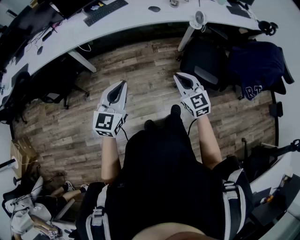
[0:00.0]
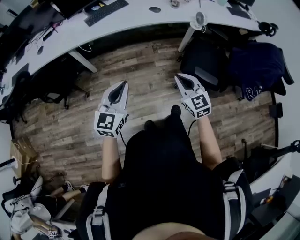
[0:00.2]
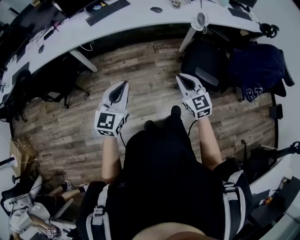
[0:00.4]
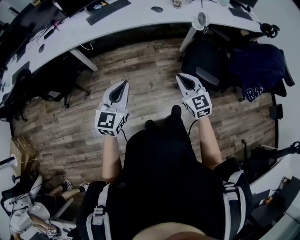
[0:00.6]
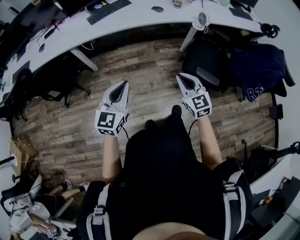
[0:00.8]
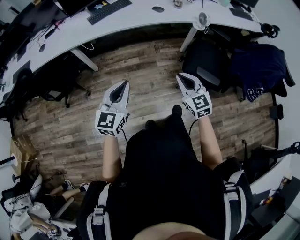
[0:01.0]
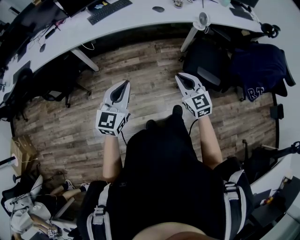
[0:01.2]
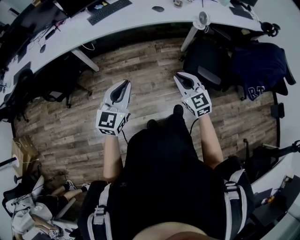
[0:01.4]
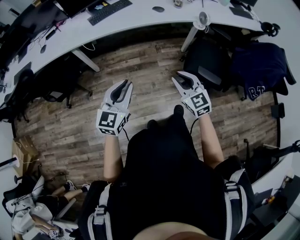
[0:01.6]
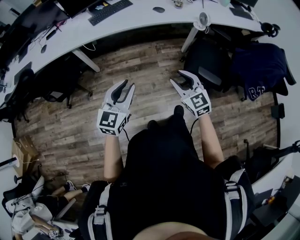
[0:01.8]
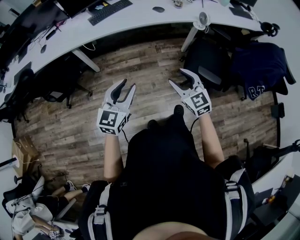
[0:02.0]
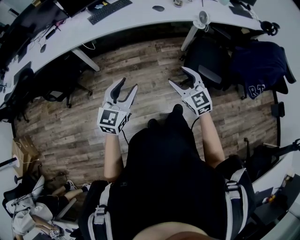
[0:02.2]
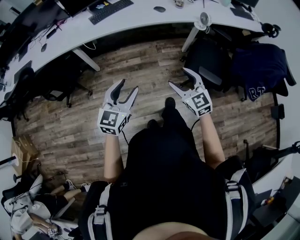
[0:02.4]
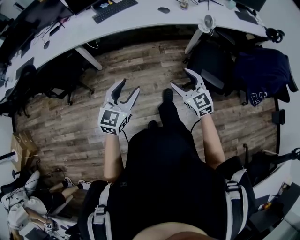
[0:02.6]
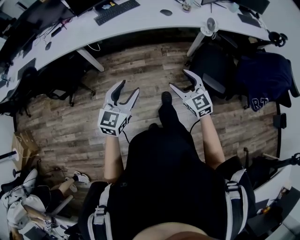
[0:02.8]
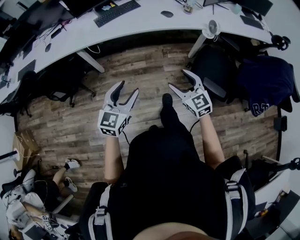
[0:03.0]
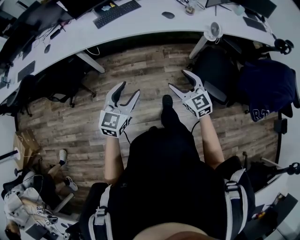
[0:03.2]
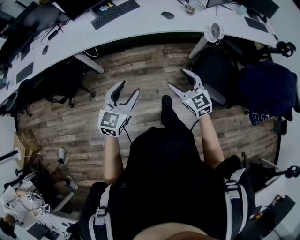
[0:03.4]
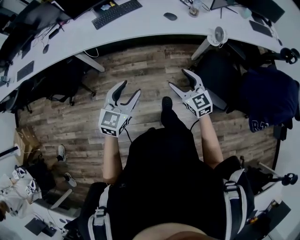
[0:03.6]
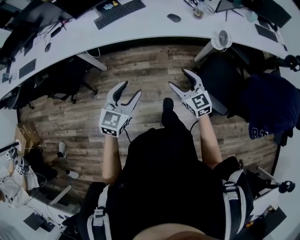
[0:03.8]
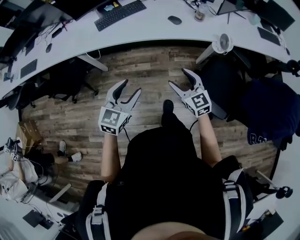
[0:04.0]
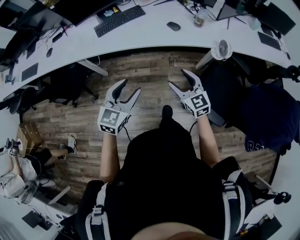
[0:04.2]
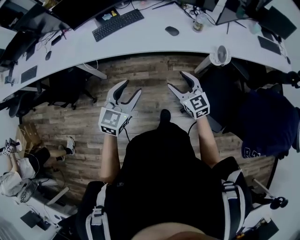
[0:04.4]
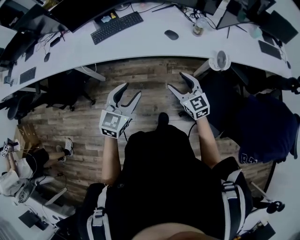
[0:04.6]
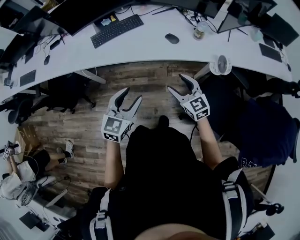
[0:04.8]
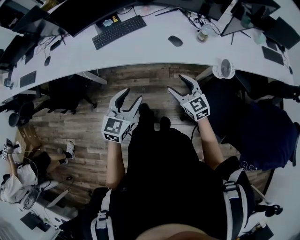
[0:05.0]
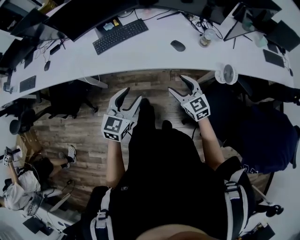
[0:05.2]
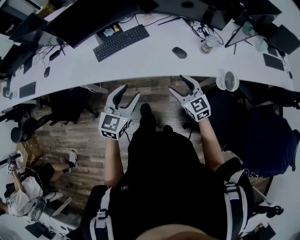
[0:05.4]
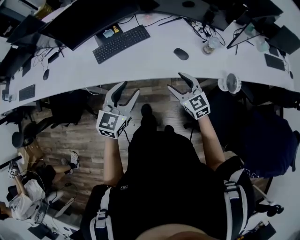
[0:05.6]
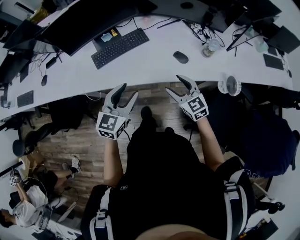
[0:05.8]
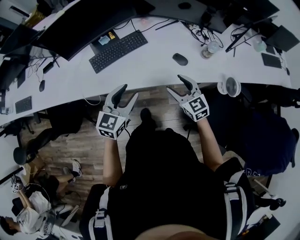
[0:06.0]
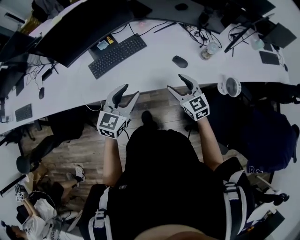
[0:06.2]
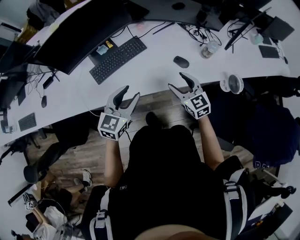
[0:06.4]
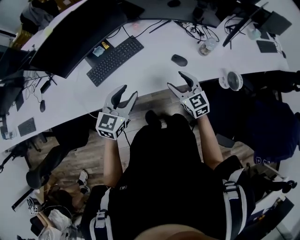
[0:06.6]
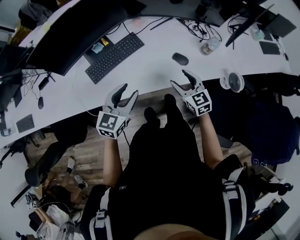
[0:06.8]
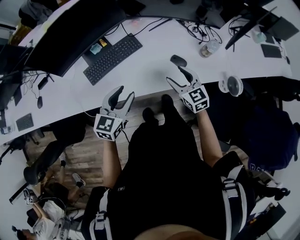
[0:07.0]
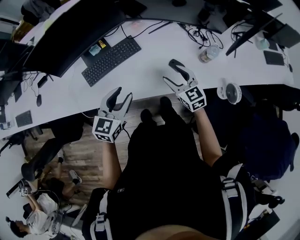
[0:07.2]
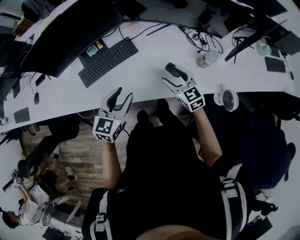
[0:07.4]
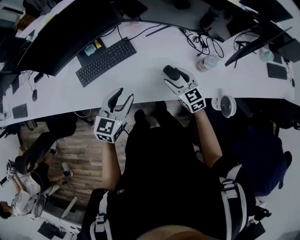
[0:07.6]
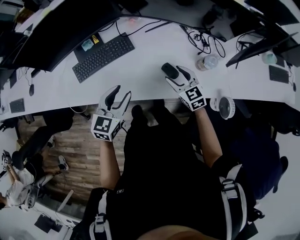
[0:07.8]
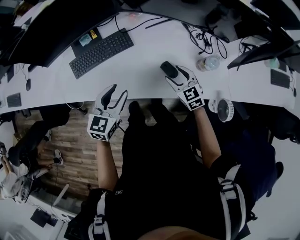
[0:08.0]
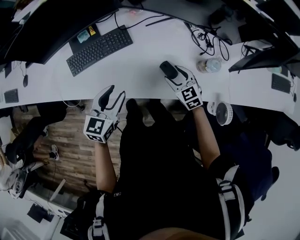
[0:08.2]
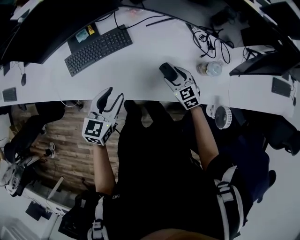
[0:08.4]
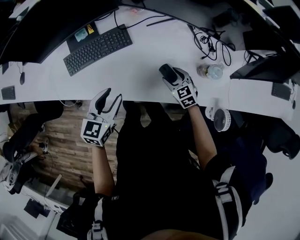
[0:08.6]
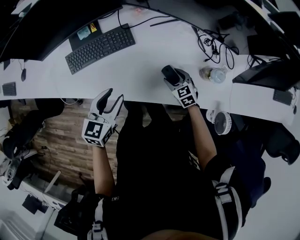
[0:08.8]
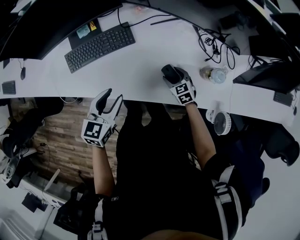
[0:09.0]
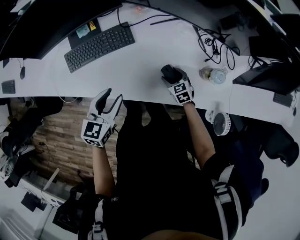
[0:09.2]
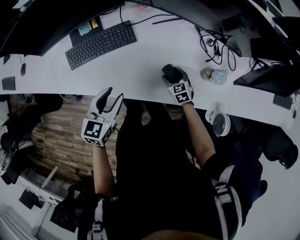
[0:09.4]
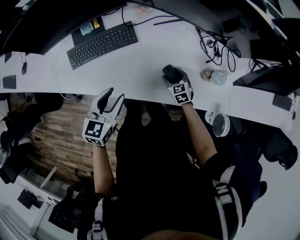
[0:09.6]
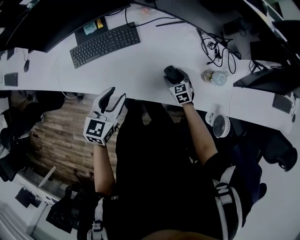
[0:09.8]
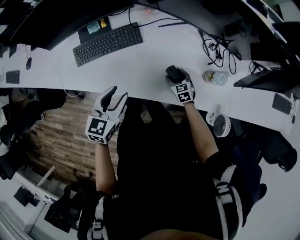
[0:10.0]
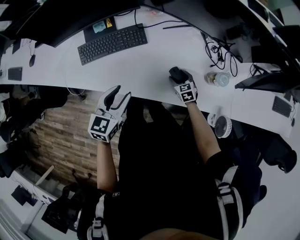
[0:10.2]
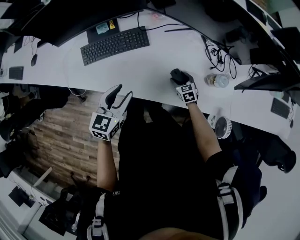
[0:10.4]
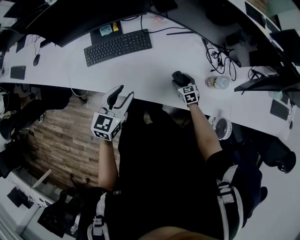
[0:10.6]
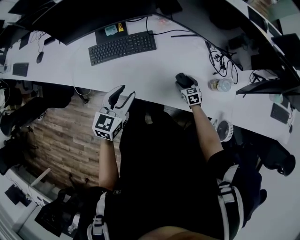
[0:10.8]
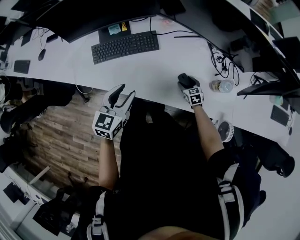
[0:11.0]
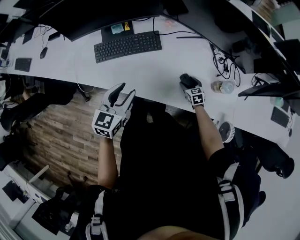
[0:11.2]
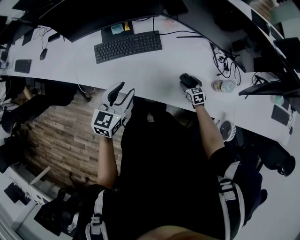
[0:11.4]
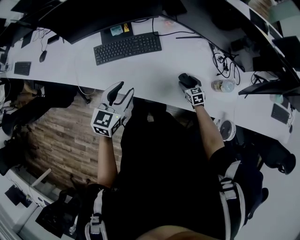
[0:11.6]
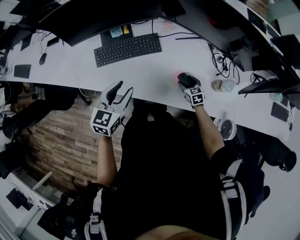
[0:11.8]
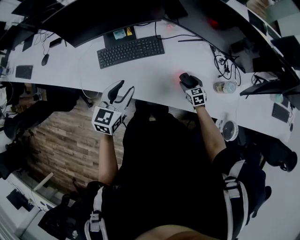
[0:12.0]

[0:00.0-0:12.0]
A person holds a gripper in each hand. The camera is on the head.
0:00.0 to 0:01.6: There are only small adjustments of the grippers.
0:01.6 to 0:03.0: The two grippers go about 5 cm forward. The right gripper opens its fingers. The left gripper opens up.
0:03.0 to 0:04.4: The left gripper shifts some 25 cm forward and to the right. Meanwhile the right gripper heads forward, covering some 25 cm.
0:04.4 to 0:06.0: Both grippers travel together forward, about 25 cm.
0:06.0 to 0:07.6: Both grippers move forward and to the right, roughly 15 cm.
0:07.6 to 0:09.0: The right gripper moves downward, about 20 cm, and rotates about 20 degrees; the left gripper is displaced downward by roughly 5 cm.
0:09.0 to 0:10.4: The grippers move only a little.
0:10.4 to 0:12.0: The left gripper moves to the left, about 10 cm. Meanwhile the right gripper ends up some 5 cm from where it was.

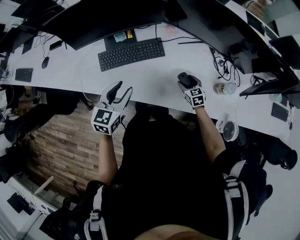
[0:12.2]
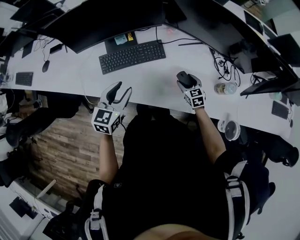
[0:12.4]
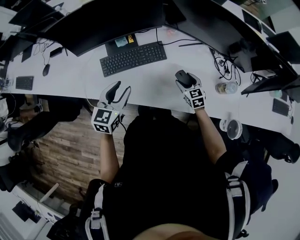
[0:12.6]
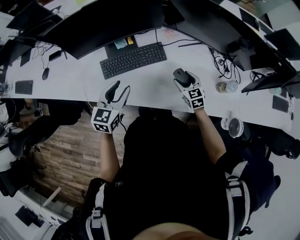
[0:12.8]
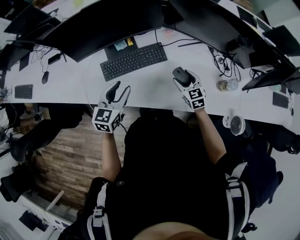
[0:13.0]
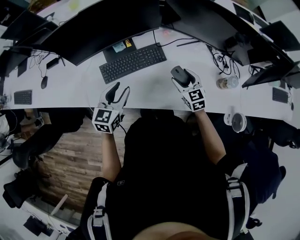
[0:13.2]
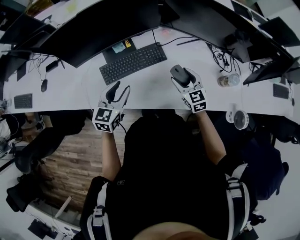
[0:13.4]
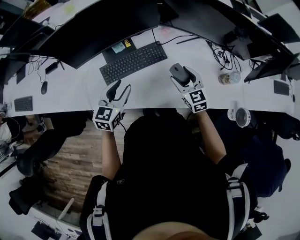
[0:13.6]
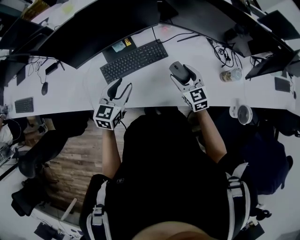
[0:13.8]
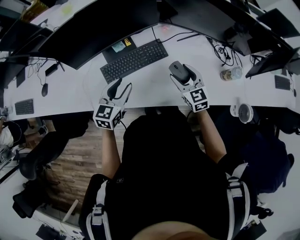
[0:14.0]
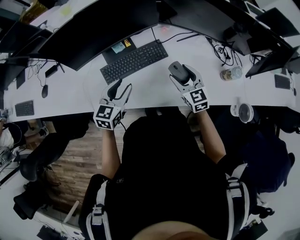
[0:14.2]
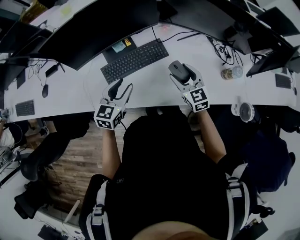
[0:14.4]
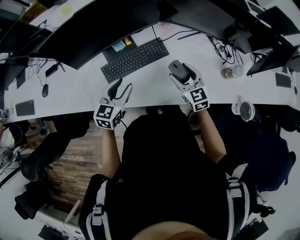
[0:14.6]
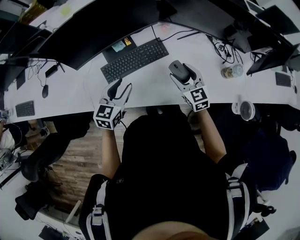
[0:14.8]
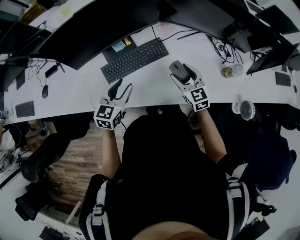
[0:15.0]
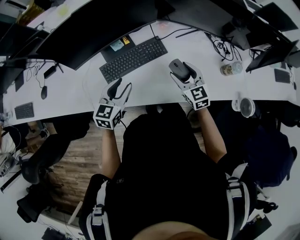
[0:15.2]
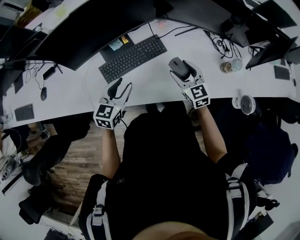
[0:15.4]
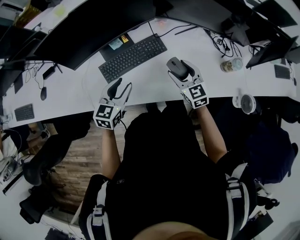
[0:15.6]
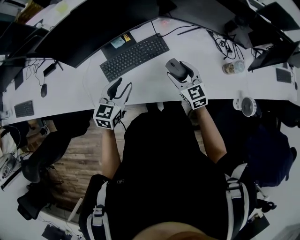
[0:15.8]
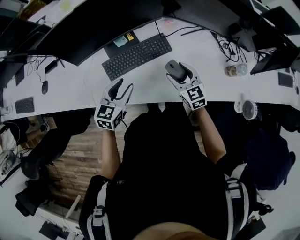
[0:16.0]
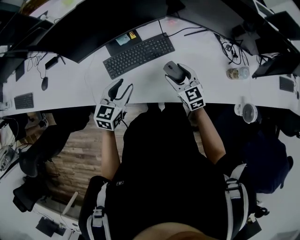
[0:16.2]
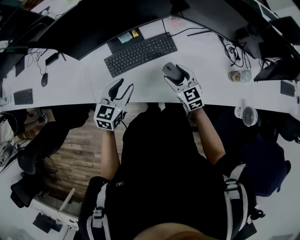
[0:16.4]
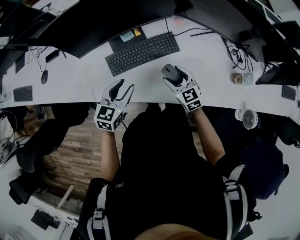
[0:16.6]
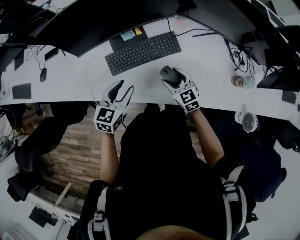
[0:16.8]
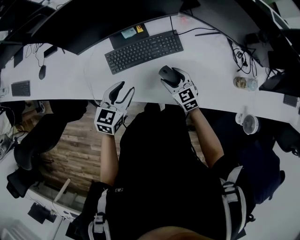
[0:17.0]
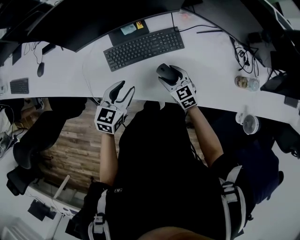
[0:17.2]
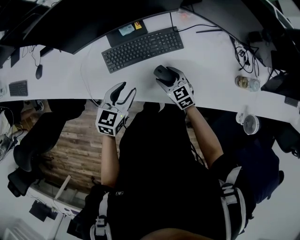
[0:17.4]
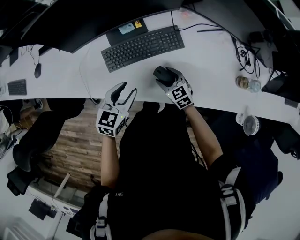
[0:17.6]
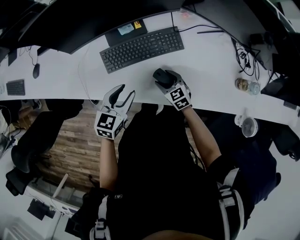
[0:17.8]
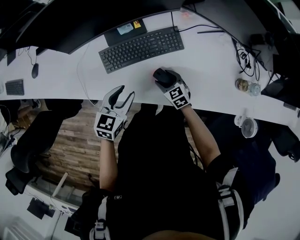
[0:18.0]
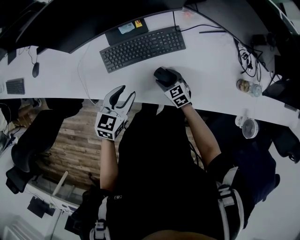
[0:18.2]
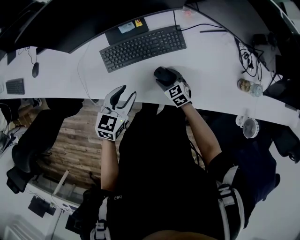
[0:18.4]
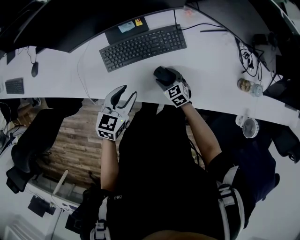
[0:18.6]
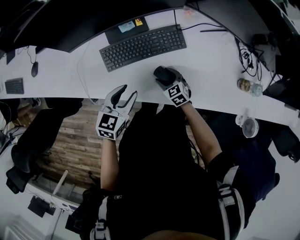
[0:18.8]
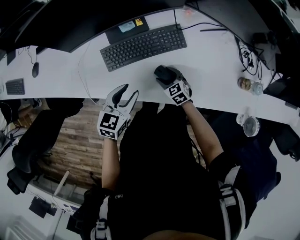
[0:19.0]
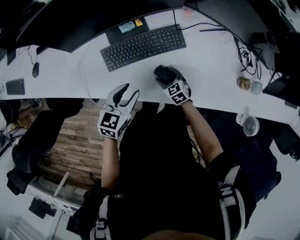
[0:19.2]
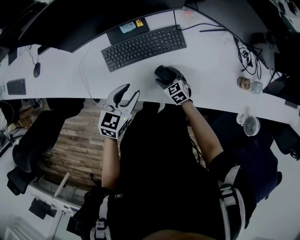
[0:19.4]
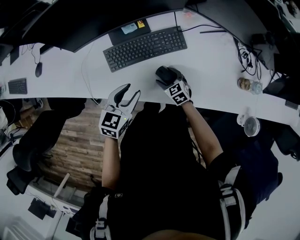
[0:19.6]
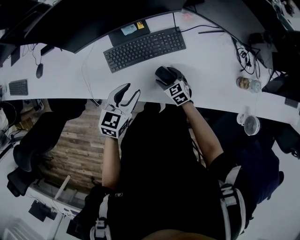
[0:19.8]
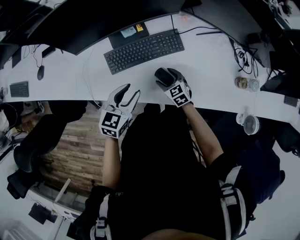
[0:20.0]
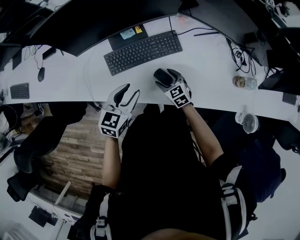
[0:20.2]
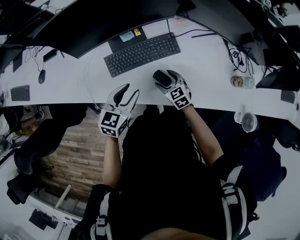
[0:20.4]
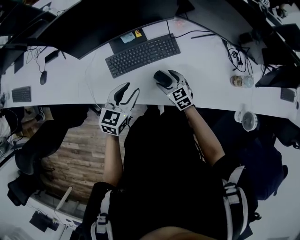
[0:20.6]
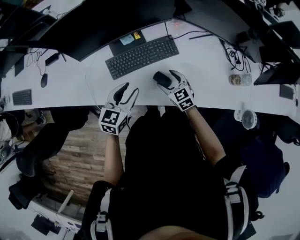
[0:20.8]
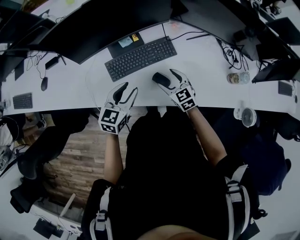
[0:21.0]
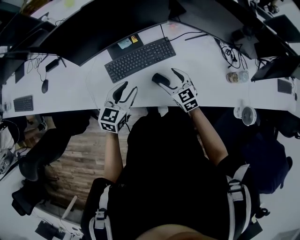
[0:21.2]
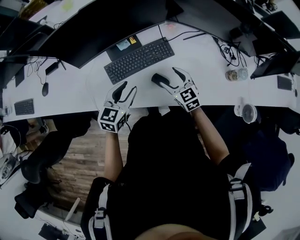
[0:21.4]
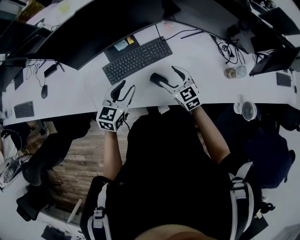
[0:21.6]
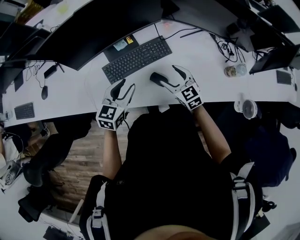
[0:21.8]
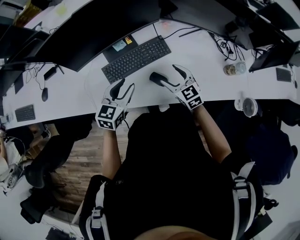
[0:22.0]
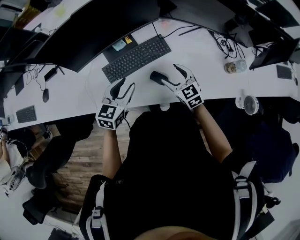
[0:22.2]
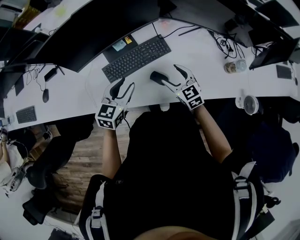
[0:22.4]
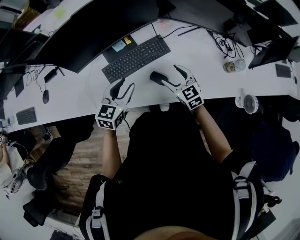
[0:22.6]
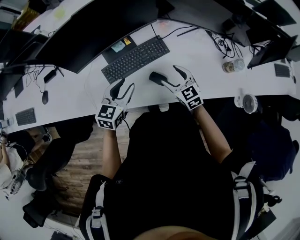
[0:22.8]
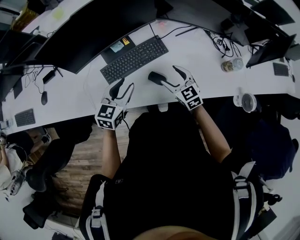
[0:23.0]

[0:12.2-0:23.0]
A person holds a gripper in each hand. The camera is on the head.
0:12.2 to 0:13.8: The left gripper heads to the left and forward, covering approximately 10 cm; the right gripper travels upward and to the left by about 20 cm.
0:13.8 to 0:15.2: The grippers make only small movements.
0:15.2 to 0:16.8: The right gripper goes about 10 cm downward and to the left.
0:16.8 to 0:18.4: The right gripper shifts approximately 15 cm downward. Meanwhile the left gripper moves some 5 cm.
0:18.4 to 0:20.0: The grippers move only a little.
0:20.0 to 0:21.4: The right gripper is displaced upward by some 15 cm.
0:21.4 to 0:23.0: The grippers stay close to where they were, moving slightly.

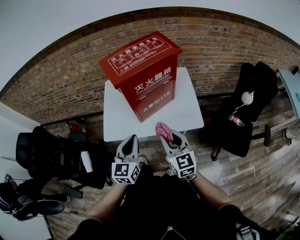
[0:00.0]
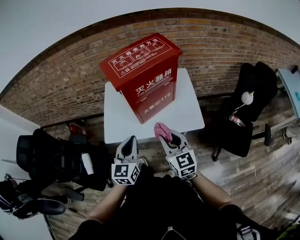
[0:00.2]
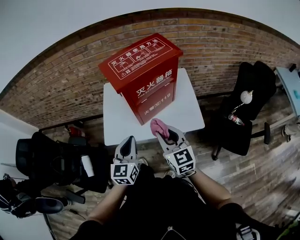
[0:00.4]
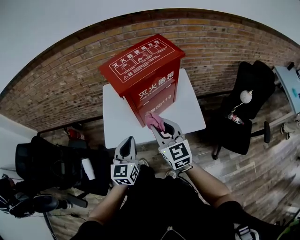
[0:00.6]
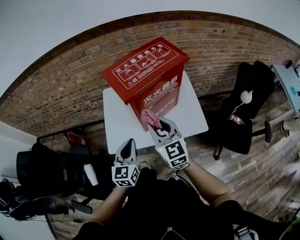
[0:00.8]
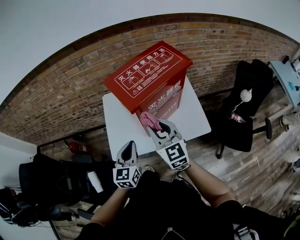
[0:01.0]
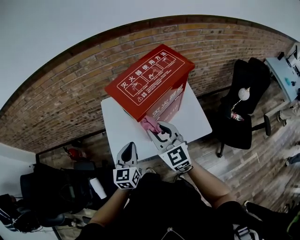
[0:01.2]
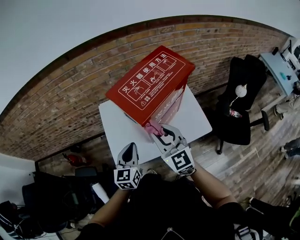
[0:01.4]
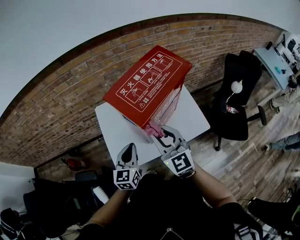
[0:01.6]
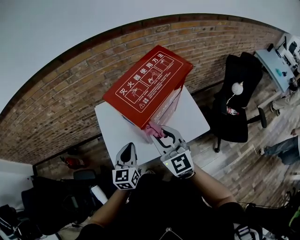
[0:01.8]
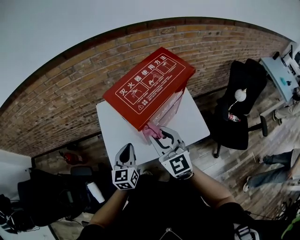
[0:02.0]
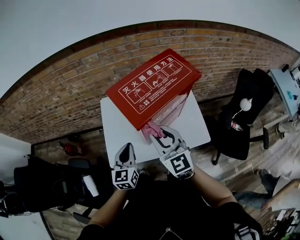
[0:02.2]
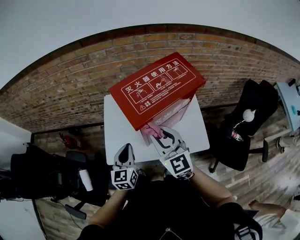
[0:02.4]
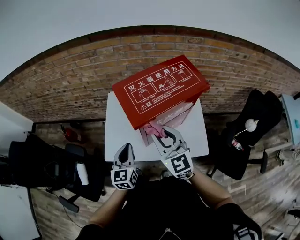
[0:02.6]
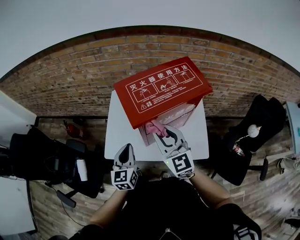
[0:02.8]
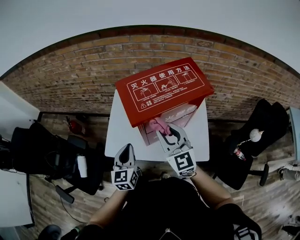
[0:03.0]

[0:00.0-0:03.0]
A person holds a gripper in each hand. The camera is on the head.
0:00.0 to 0:01.6: The two grippers go roughly 20 cm forward and to the left.
0:01.6 to 0:03.0: The left gripper rotates about 30 degrees; the right gripper changes place by about 5 cm, and rotates roughly 20 degrees.
